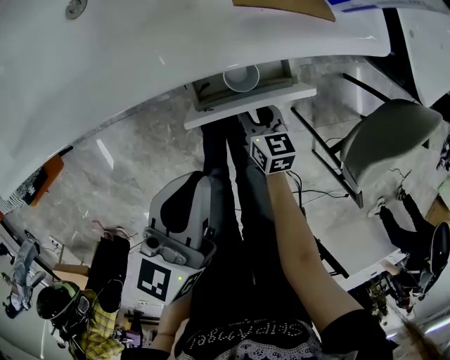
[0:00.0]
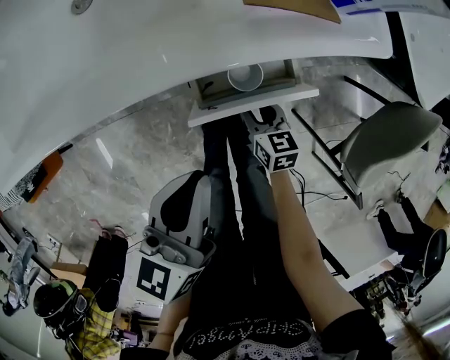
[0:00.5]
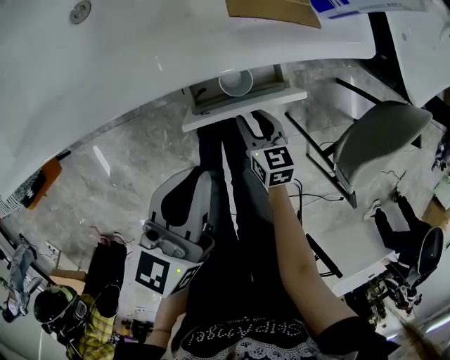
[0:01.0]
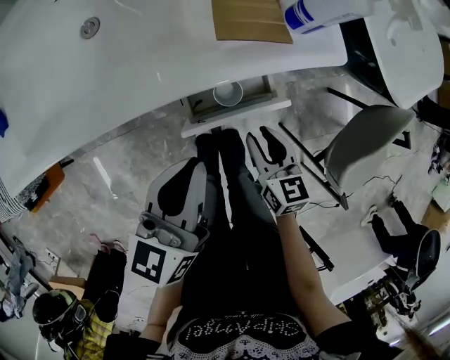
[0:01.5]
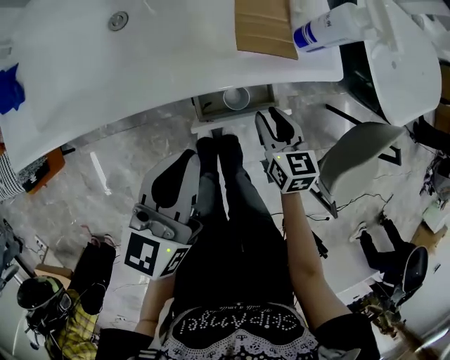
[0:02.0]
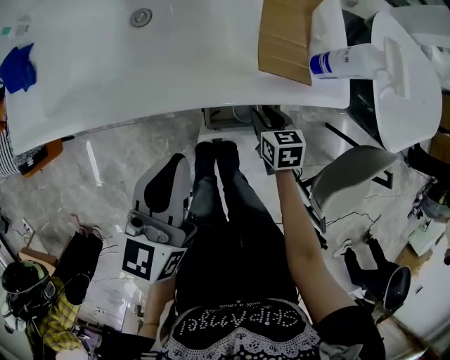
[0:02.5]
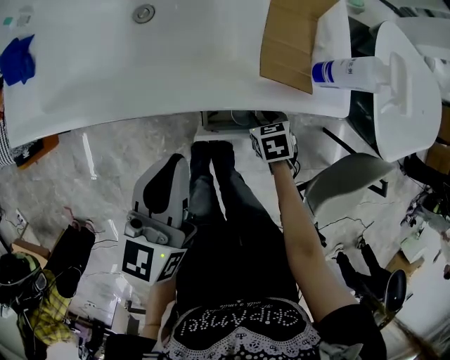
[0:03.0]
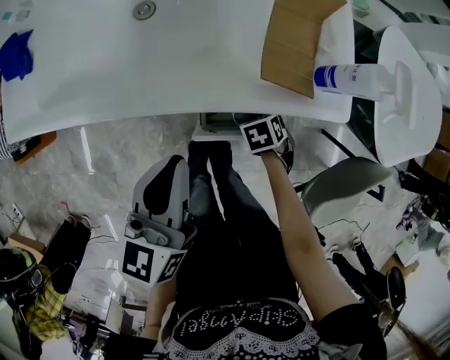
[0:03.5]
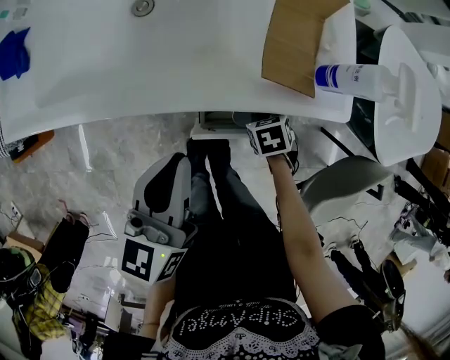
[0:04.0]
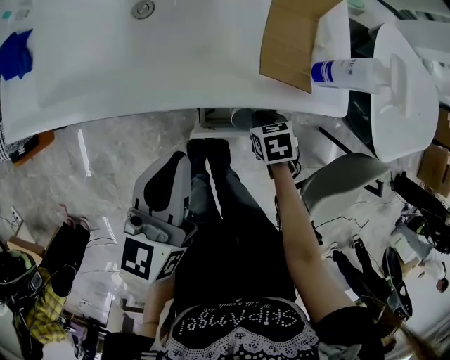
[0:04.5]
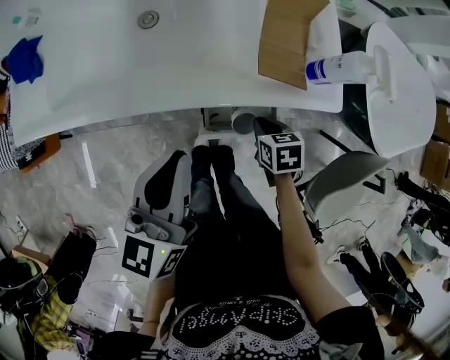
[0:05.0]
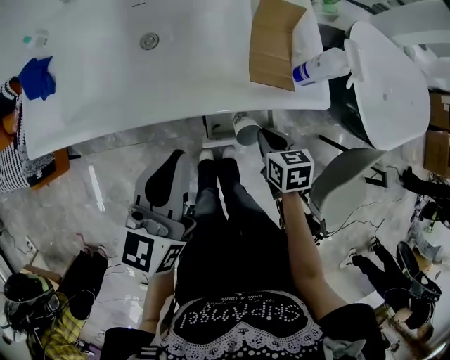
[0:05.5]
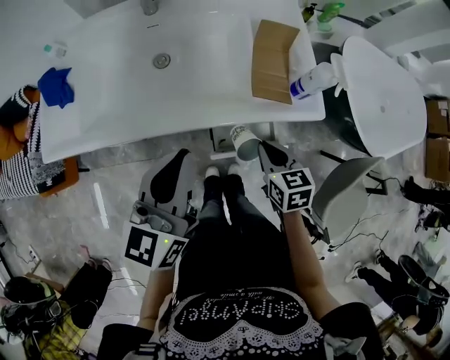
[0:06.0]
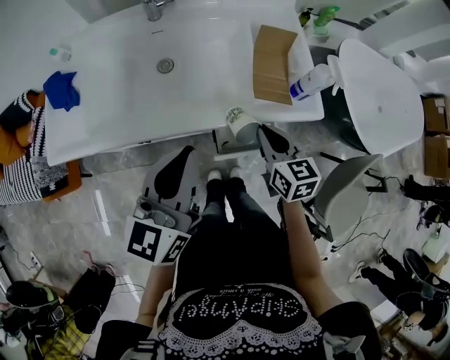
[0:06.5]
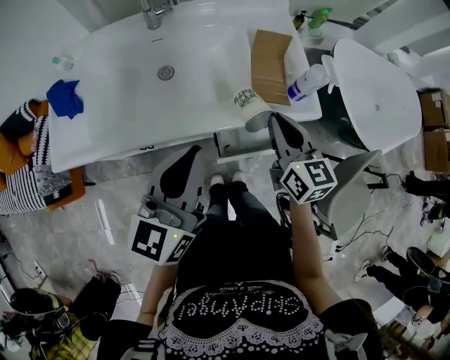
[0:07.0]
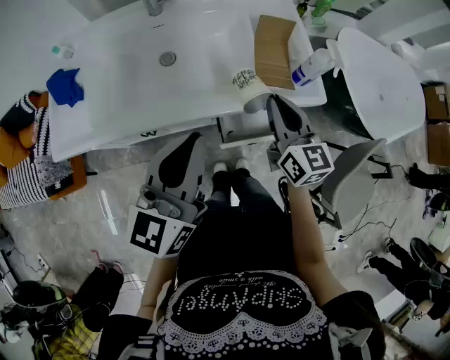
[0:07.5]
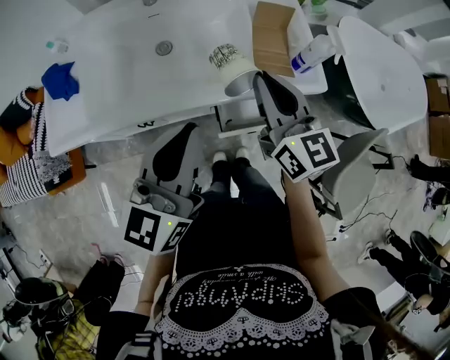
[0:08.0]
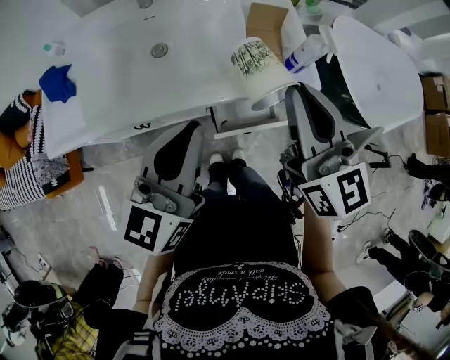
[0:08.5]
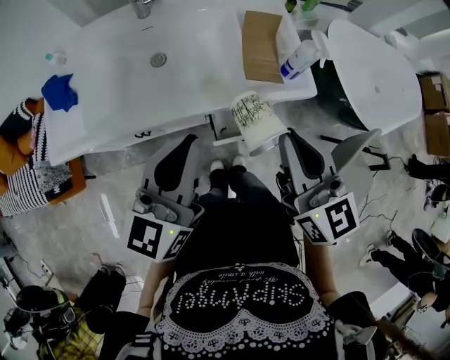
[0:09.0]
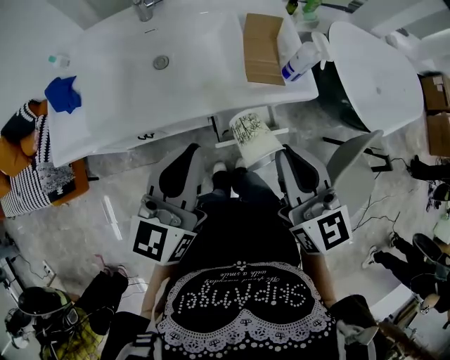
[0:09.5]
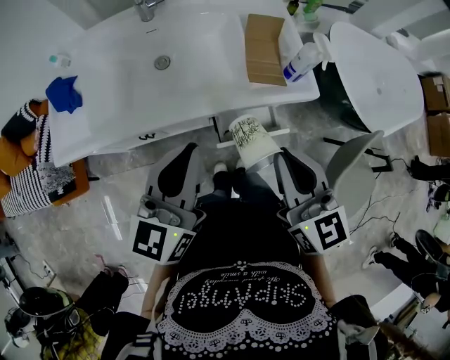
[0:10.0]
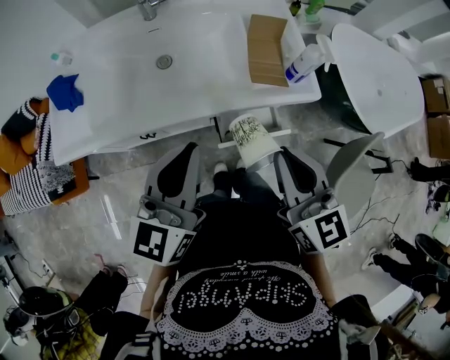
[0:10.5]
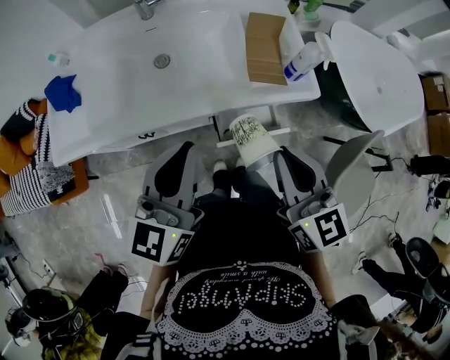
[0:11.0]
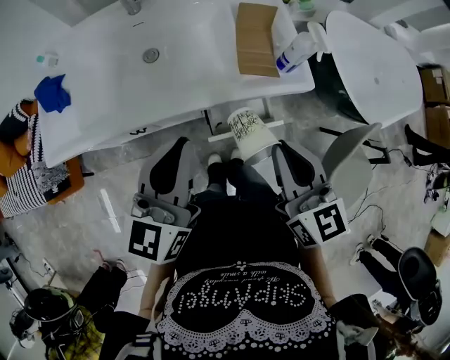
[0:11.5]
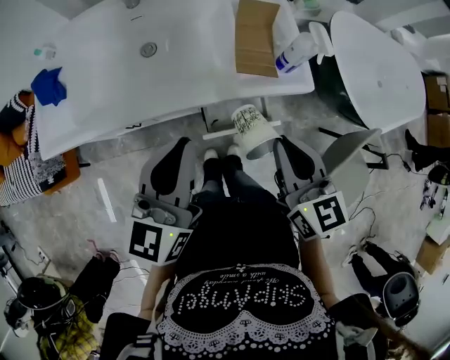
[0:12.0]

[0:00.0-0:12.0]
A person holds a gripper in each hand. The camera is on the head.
0:00.0 to 0:02.0: The left gripper travels upward by about 10 cm. Meanwhile the right gripper goes roughly 15 cm upward.
0:02.0 to 0:04.0: The right gripper goes approximately 10 cm downward, tilts its fingers some 40 degrees downward, and closes.
0:04.0 to 0:06.0: The right gripper moves upward, roughly 20 cm, and tilts its fingers some 30 degrees upward. Meanwhile the left gripper heads upward, covering roughly 10 cm.
0:06.0 to 0:08.0: The right gripper moves upward, some 20 cm, and tips its fingers upward by roughly 40 degrees.
0:08.0 to 0:10.0: The right gripper goes some 10 cm backward.
0:10.0 to 0:12.0: The right gripper moves some 5 cm.

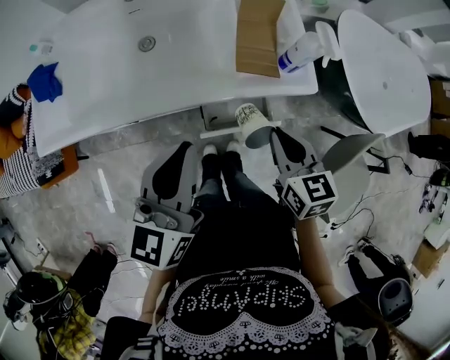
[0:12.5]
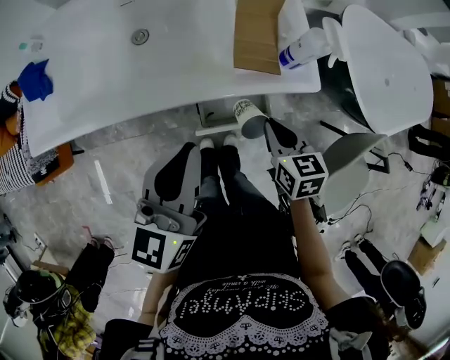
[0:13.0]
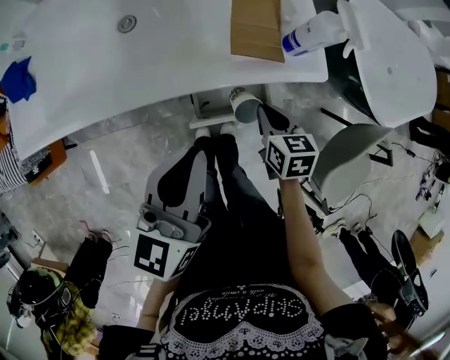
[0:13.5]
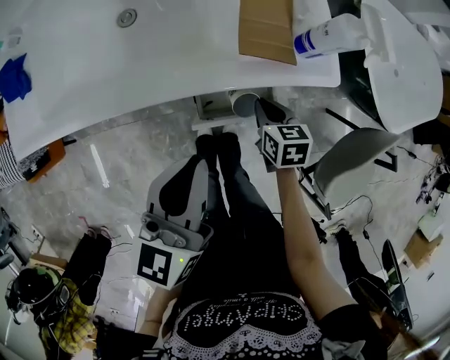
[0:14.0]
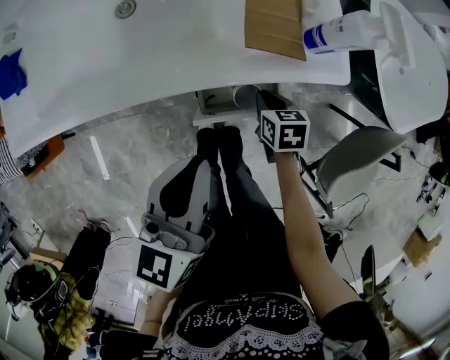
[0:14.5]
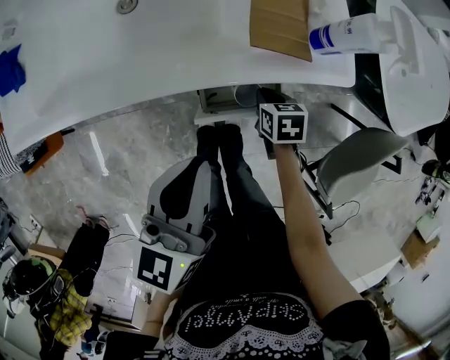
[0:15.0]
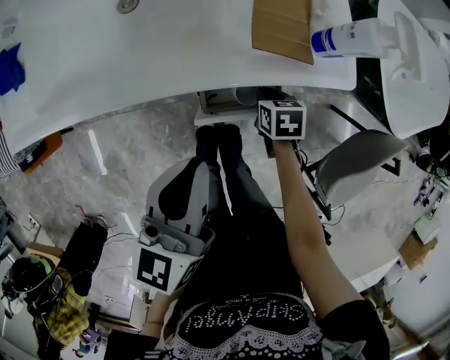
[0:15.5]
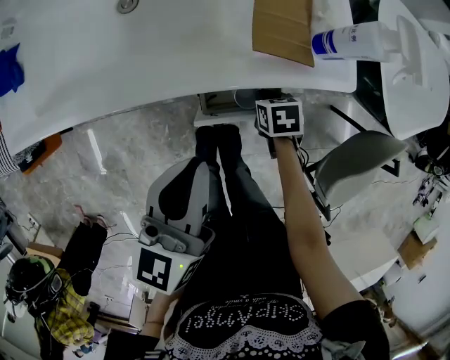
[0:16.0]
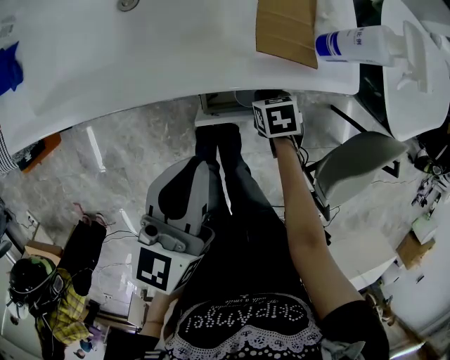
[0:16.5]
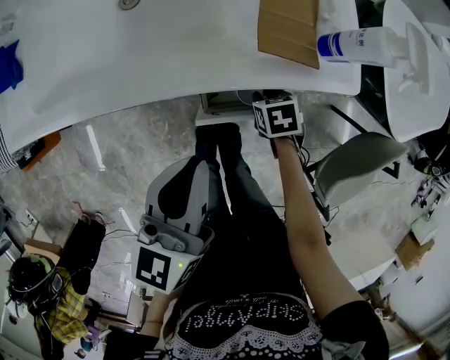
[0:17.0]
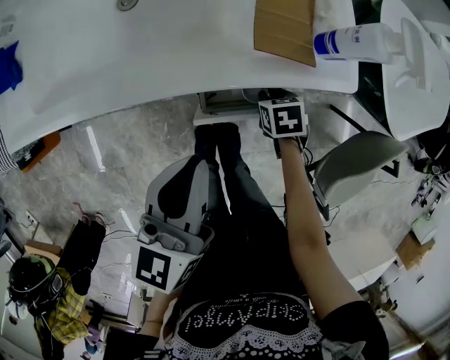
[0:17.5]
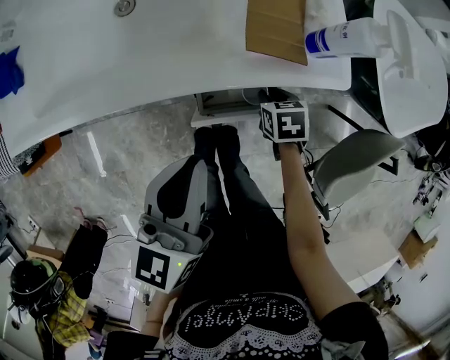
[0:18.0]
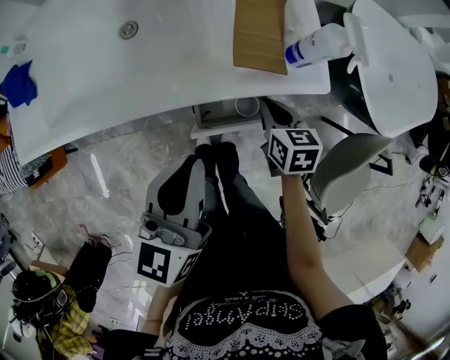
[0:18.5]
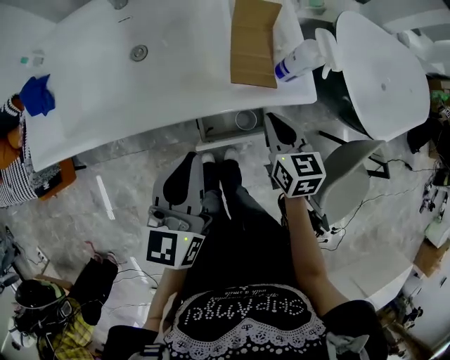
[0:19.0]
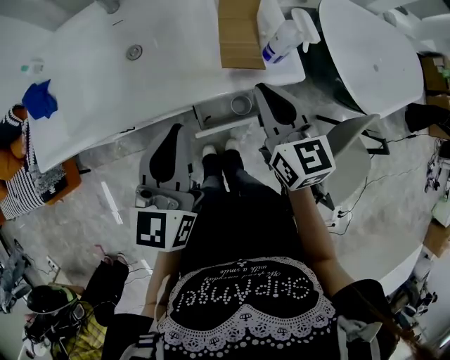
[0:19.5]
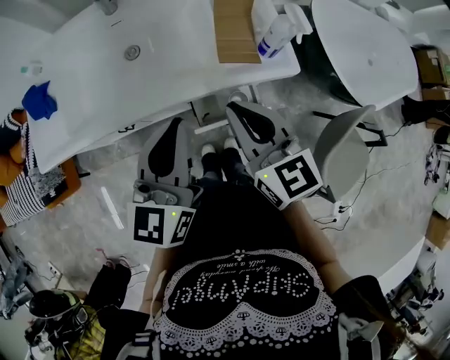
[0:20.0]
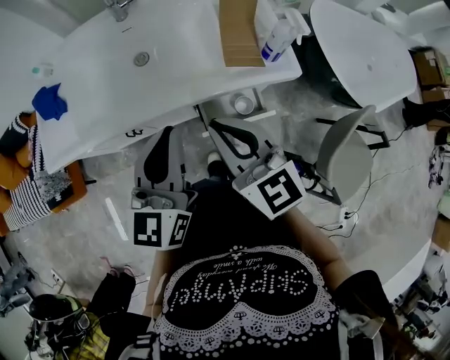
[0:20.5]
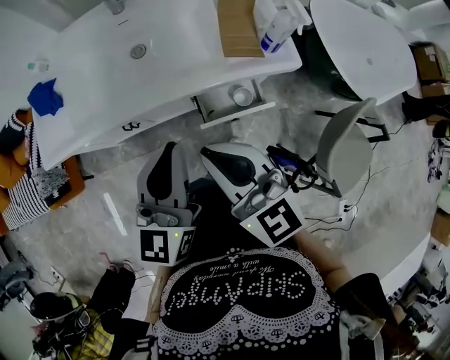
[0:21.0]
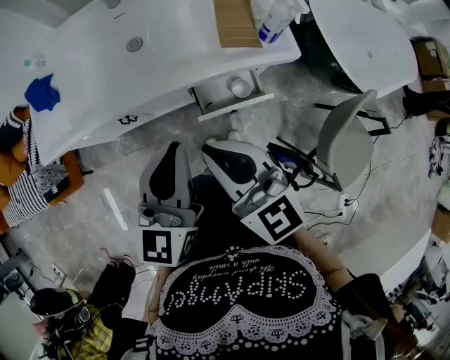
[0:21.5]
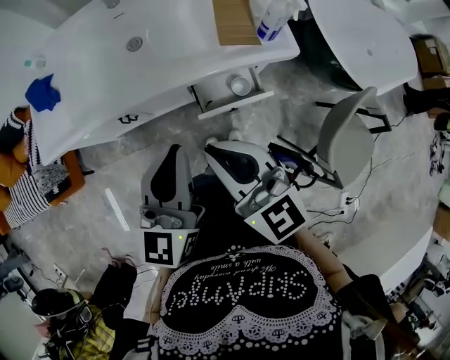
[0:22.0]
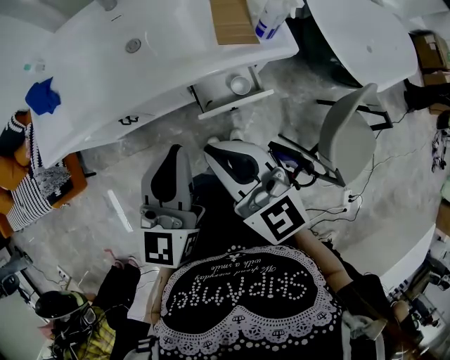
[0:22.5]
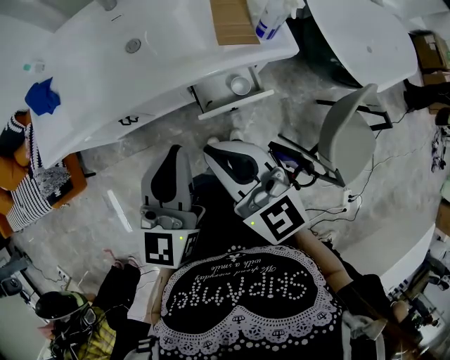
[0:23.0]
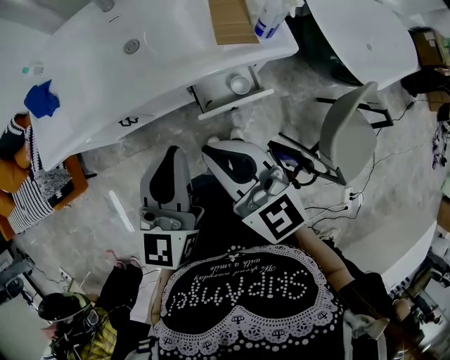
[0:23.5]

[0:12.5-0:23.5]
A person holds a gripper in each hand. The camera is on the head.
0:12.5 to 0:14.5: The right gripper moves downward, roughly 25 cm, and rotates approximately 30 degrees, while the left gripper goes some 10 cm downward.
0:14.5 to 0:18.0: There are only small adjustments of the grippers.
0:18.0 to 0:20.0: The right gripper shifts some 35 cm upward, and tips its fingers upward by roughly 50 degrees. Meanwhile the left gripper heads upward, covering approximately 10 cm.
0:20.0 to 0:21.5: The right gripper travels backward and to the left by about 15 cm. Meanwhile the left gripper travels backward by approximately 10 cm.
0:21.5 to 0:23.5: Neither gripper changes place.

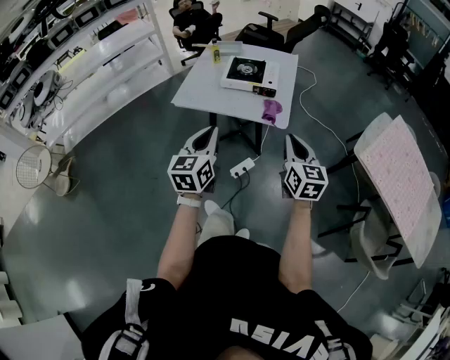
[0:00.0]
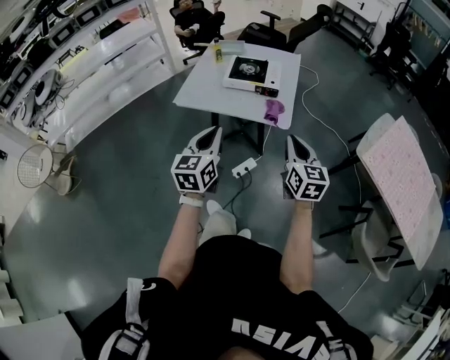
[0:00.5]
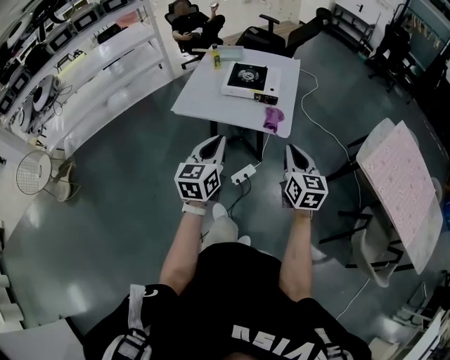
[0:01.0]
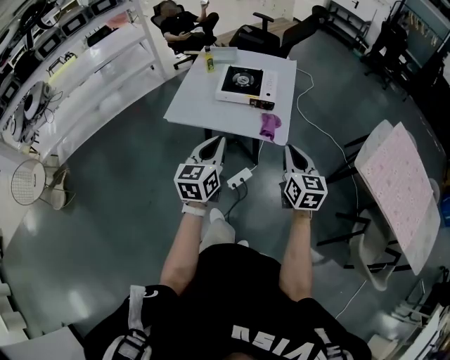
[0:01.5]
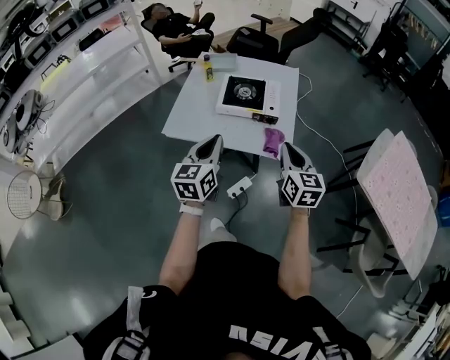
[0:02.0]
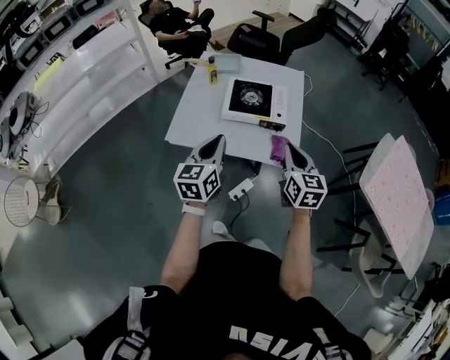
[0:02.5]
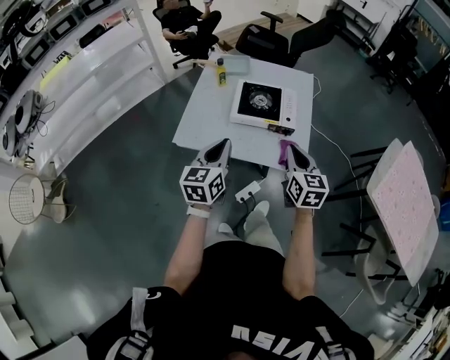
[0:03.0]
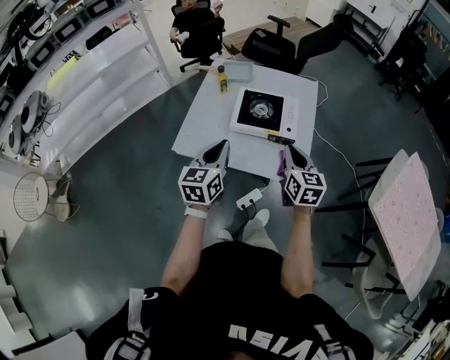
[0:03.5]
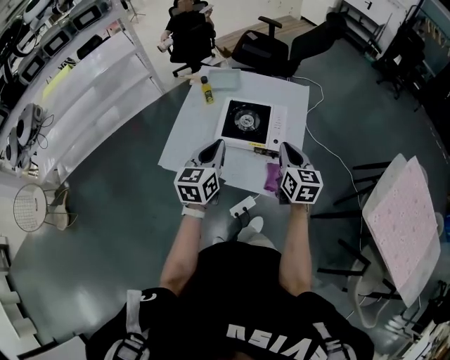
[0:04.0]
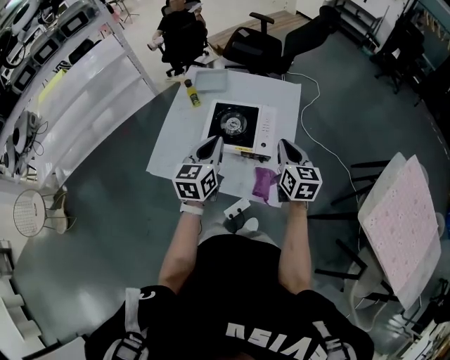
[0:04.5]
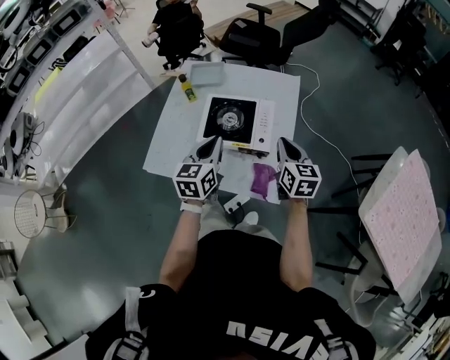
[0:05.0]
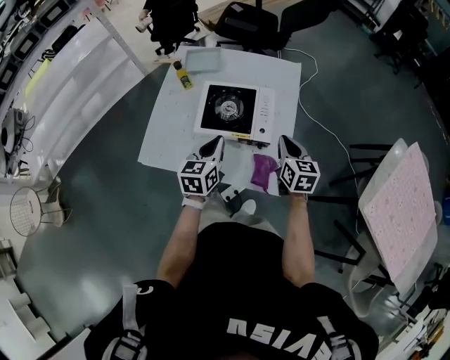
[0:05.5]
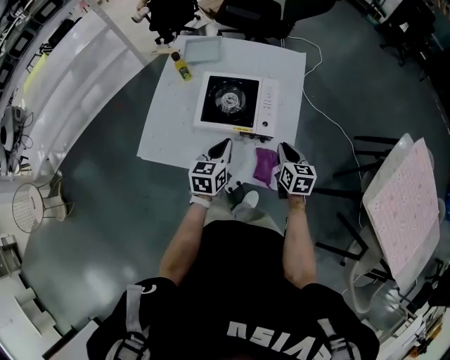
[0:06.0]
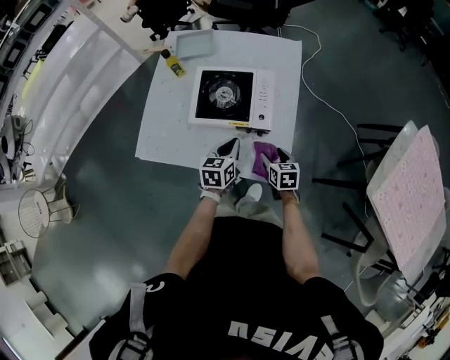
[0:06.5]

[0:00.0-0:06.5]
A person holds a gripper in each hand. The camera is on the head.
0:00.0 to 0:02.0: Both grippers move forward, about 20 cm.
0:02.0 to 0:04.5: Both grippers move forward, approximately 25 cm.
0:04.5 to 0:06.5: Both grippers travel together downward, some 25 cm. The right gripper changes its angle by roughly 30 degrees, and opens its fingers, while the left gripper swivels some 20 degrees.
